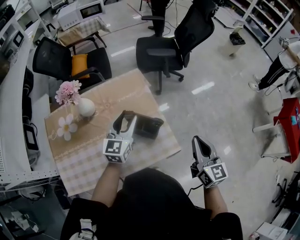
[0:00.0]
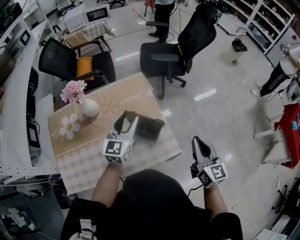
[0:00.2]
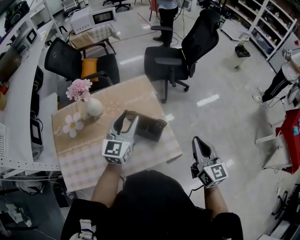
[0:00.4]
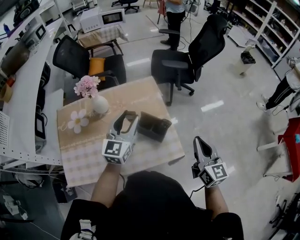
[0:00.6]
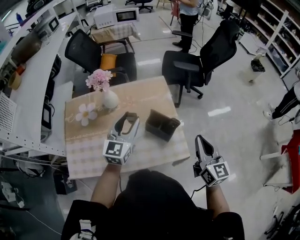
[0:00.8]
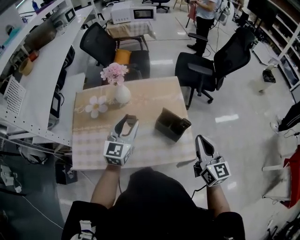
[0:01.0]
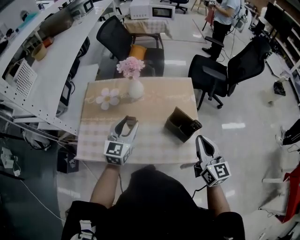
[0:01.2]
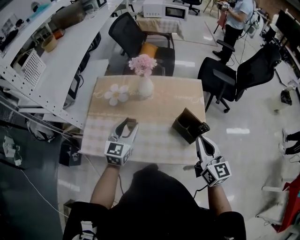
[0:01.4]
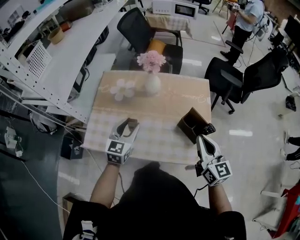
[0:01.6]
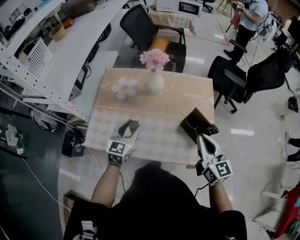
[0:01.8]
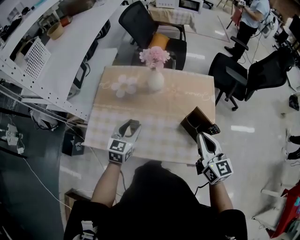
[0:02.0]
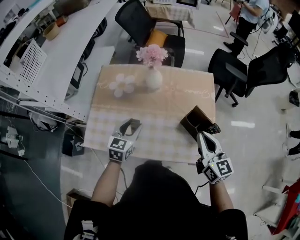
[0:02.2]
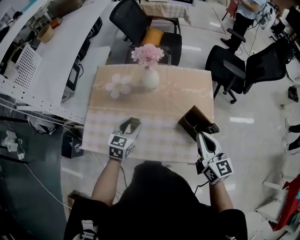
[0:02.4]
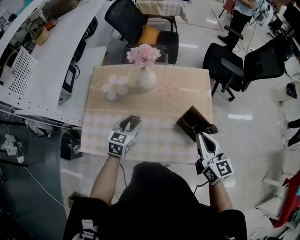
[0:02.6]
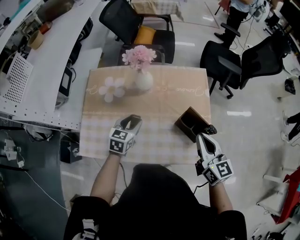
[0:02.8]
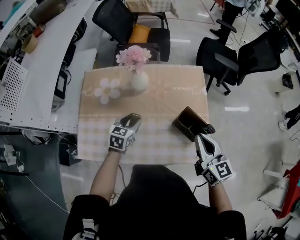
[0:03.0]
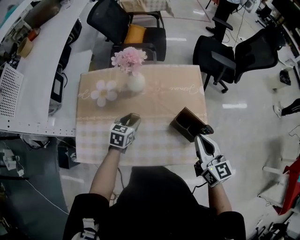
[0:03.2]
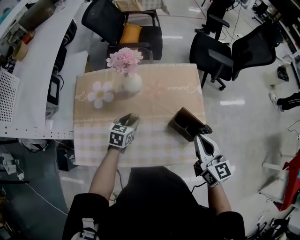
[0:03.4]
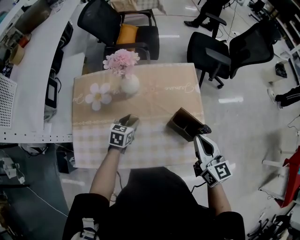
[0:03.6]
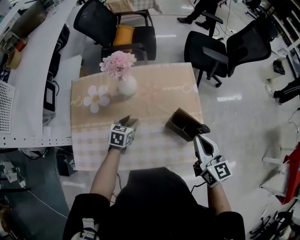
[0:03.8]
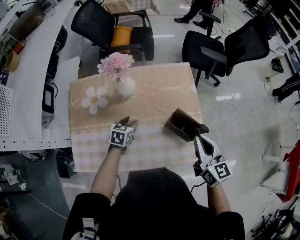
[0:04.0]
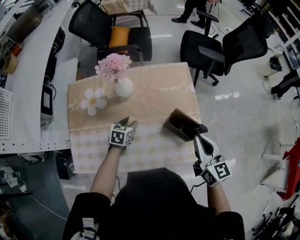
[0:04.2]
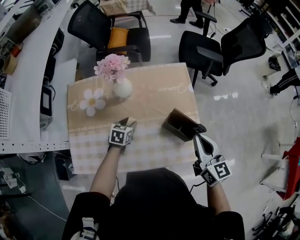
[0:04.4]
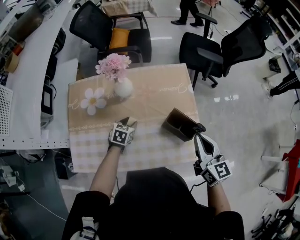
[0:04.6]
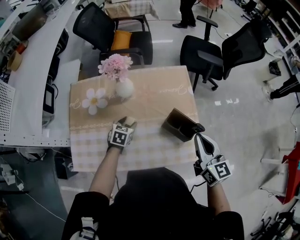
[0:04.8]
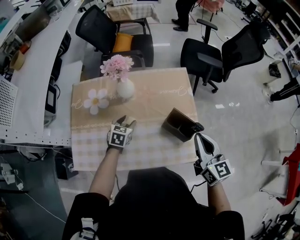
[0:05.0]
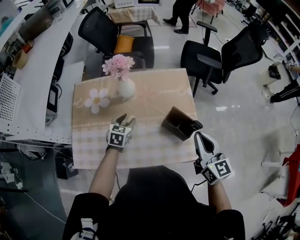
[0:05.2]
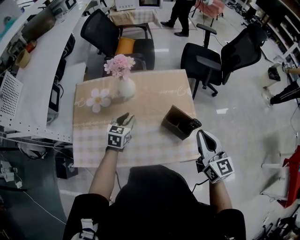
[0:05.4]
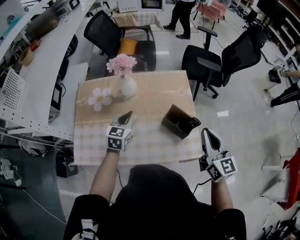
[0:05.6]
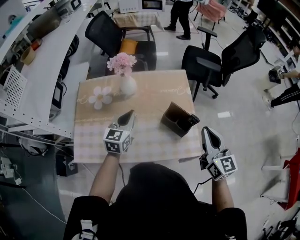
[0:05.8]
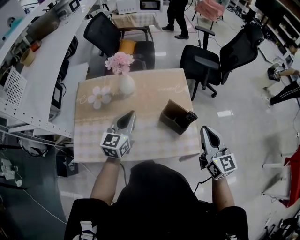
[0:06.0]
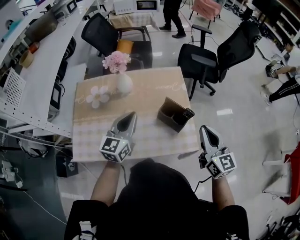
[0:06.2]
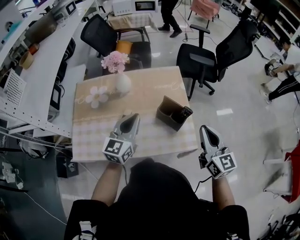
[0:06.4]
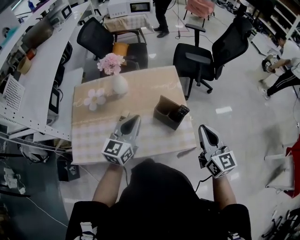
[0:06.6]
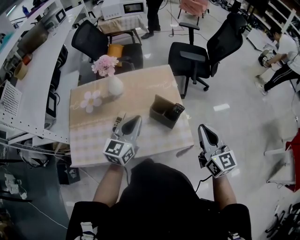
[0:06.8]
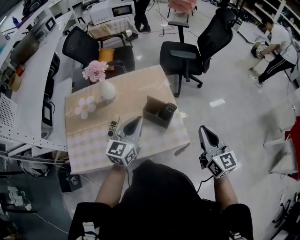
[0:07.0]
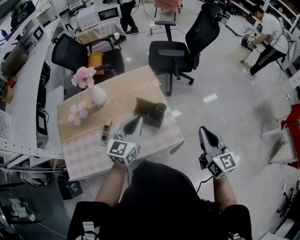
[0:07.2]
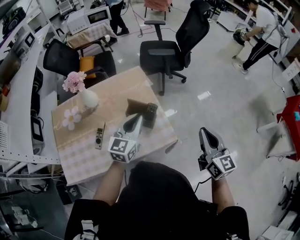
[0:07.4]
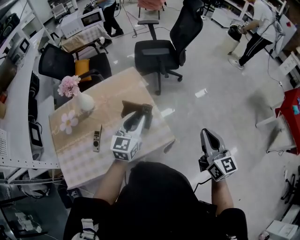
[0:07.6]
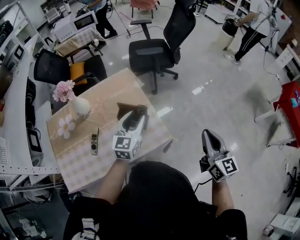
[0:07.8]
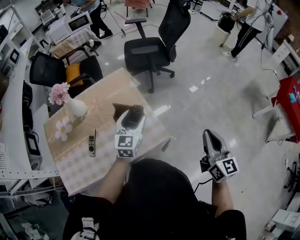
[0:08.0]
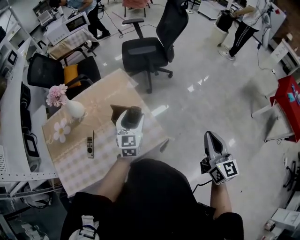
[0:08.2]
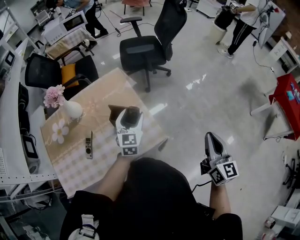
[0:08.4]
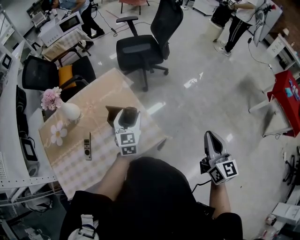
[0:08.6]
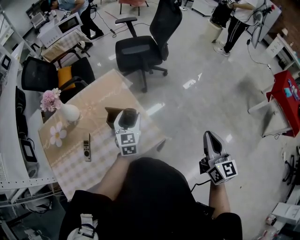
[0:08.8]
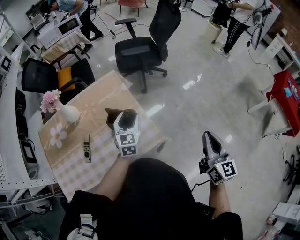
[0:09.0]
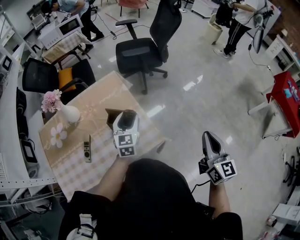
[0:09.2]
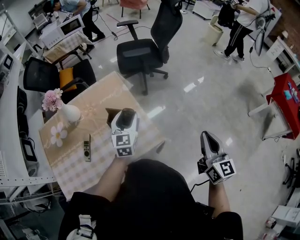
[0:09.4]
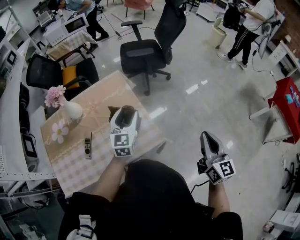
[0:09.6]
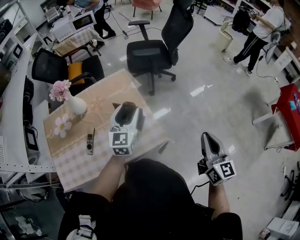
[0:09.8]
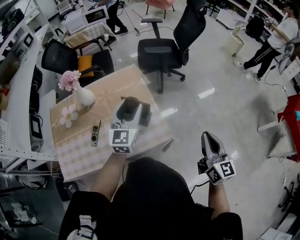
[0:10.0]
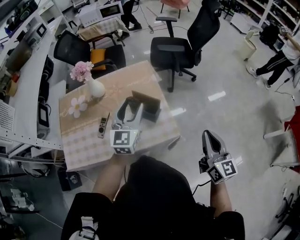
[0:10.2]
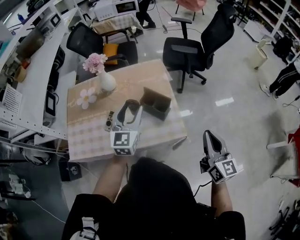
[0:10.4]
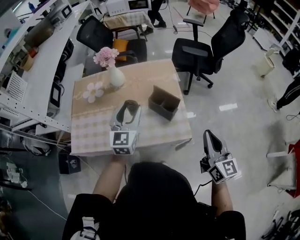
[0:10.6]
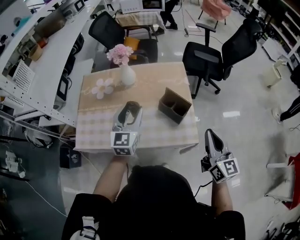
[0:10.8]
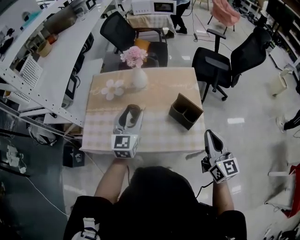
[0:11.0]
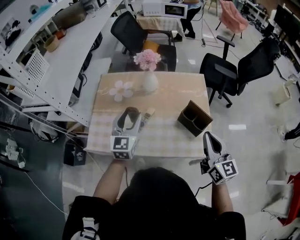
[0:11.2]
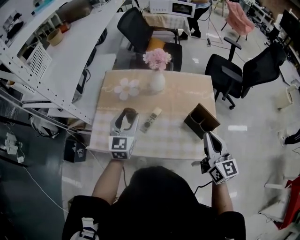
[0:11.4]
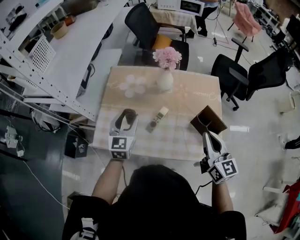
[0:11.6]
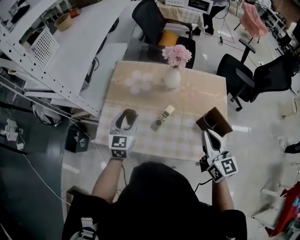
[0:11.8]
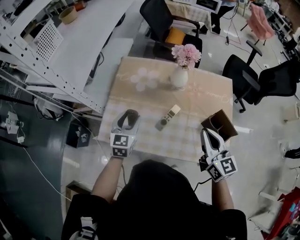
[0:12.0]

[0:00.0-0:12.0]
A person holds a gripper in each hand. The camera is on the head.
0:00.0 to 0:01.6: The left gripper moves about 5 cm upward and comes back, and swivels roughly 30 degrees; the right gripper shifts by some 20 cm, and turns by roughly 30 degrees.
0:01.6 to 0:03.0: The left gripper moves downward and forward, approximately 15 cm, and changes its angle by about 20 degrees. Meanwhile the right gripper moves about 5 cm.
0:03.0 to 0:04.4: The left gripper is displaced downward by about 10 cm.
0:04.4 to 0:06.0: The right gripper heads backward, upward and to the right, covering some 10 cm. Meanwhile the left gripper travels upward by some 25 cm, tilts its fingers roughly 40 degrees upward, and closes up.
0:06.0 to 0:07.6: The right gripper shifts approximately 20 cm to the right and backward, and turns by approximately 20 degrees; the left gripper shifts approximately 25 cm to the right, and rotates roughly 20 degrees.
0:07.6 to 0:09.0: The left gripper travels downward and forward by approximately 10 cm, and opens up. Meanwhile the right gripper is displaced to the right by approximately 5 cm.
0:09.0 to 0:10.4: The left gripper is displaced upward, to the left and backward by roughly 20 cm. The right gripper shifts about 10 cm to the left, and changes its angle by about 20 degrees.
0:10.4 to 0:12.0: The right gripper goes approximately 40 cm to the left and forward, and turns by approximately 30 degrees. The left gripper goes roughly 40 cm to the left, and changes its angle by roughly 30 degrees.

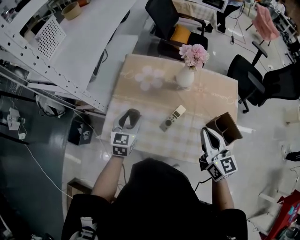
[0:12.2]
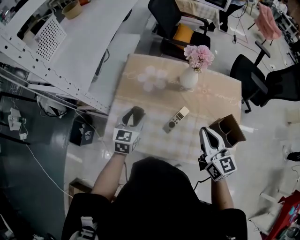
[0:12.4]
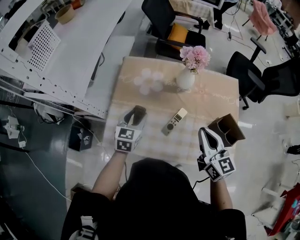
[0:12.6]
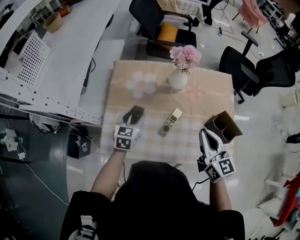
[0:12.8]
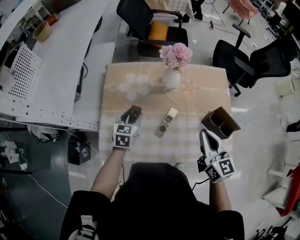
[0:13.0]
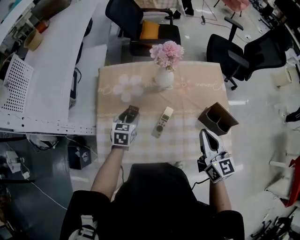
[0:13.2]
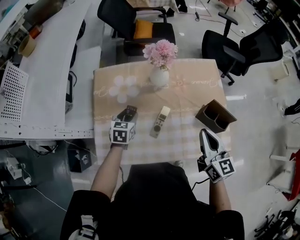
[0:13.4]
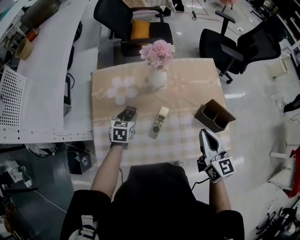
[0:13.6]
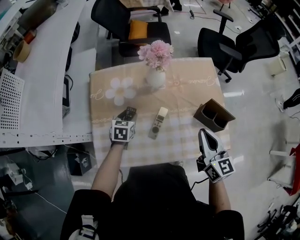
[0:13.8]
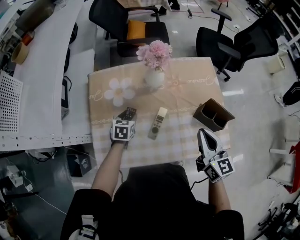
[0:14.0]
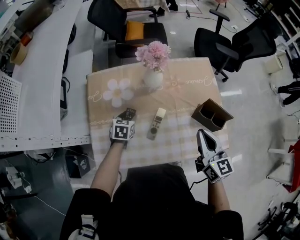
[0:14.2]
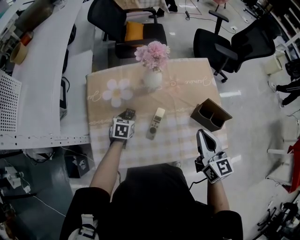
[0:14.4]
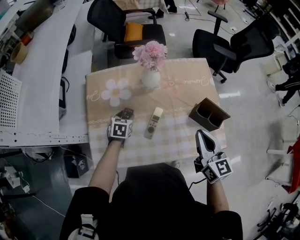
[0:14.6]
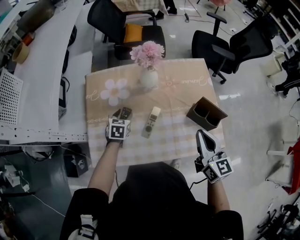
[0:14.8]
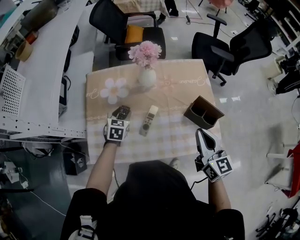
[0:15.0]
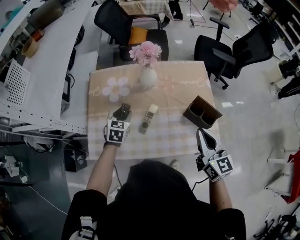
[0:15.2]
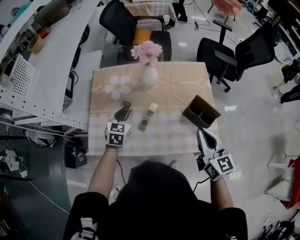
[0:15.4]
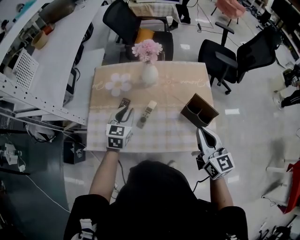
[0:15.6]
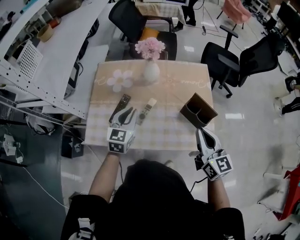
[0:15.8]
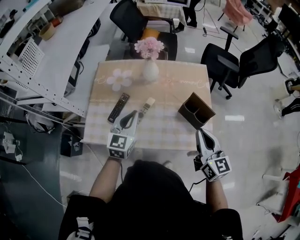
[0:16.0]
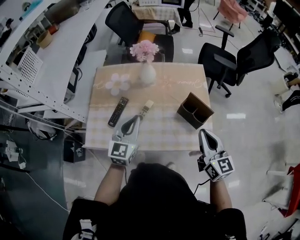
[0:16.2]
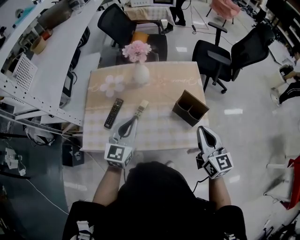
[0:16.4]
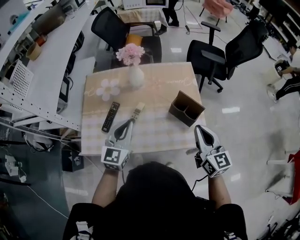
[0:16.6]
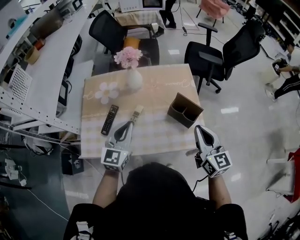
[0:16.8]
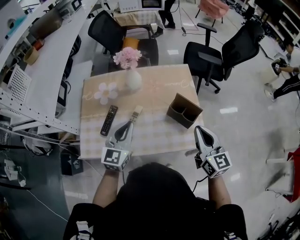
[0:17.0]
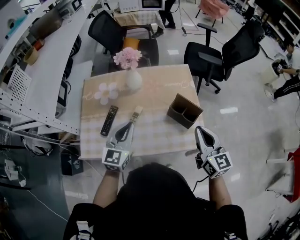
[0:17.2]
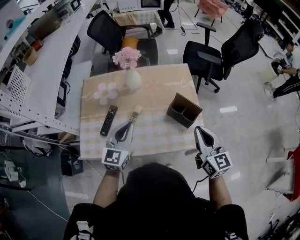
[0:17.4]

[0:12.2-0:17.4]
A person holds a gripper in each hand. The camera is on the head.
0:12.2 to 0:14.0: The right gripper ends up approximately 5 cm from where it was, and rotates approximately 20 degrees. Meanwhile the left gripper shifts some 20 cm downward, forward and to the right, and swivels roughly 30 degrees.
0:14.0 to 0:15.6: The left gripper shifts approximately 20 cm upward, backward and to the right, swivels roughly 20 degrees, and closes up. The right gripper goes some 10 cm to the right and backward.
0:15.6 to 0:17.4: The right gripper heads to the right, covering about 5 cm; the left gripper goes approximately 15 cm to the right, backward and upward.

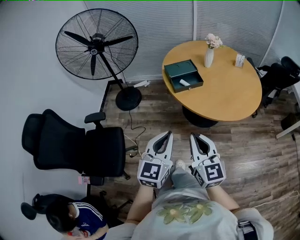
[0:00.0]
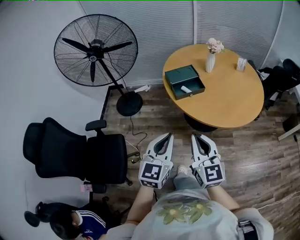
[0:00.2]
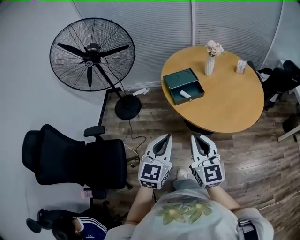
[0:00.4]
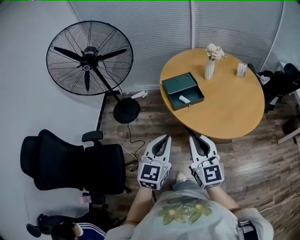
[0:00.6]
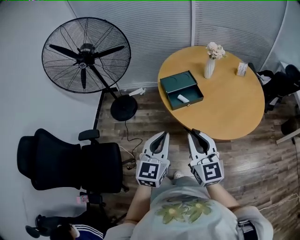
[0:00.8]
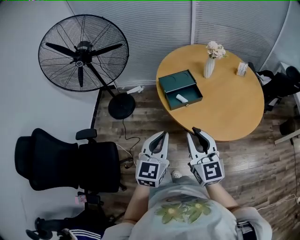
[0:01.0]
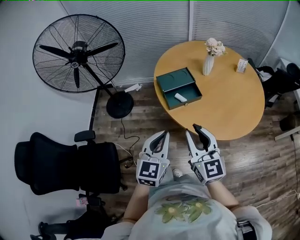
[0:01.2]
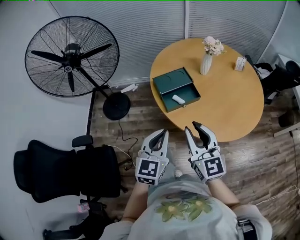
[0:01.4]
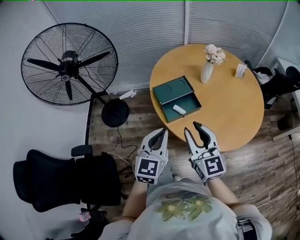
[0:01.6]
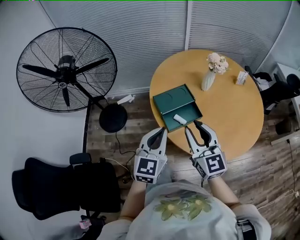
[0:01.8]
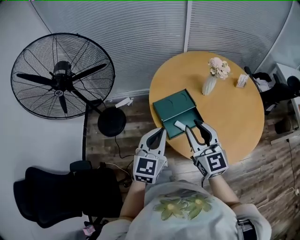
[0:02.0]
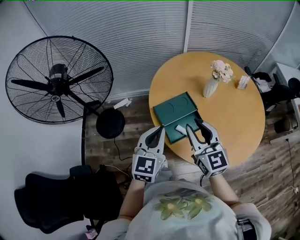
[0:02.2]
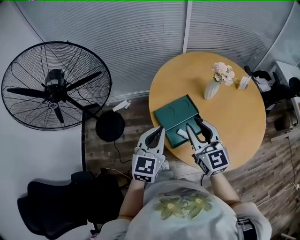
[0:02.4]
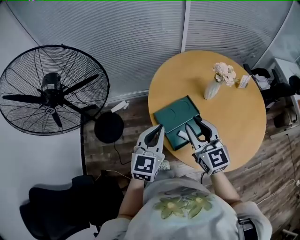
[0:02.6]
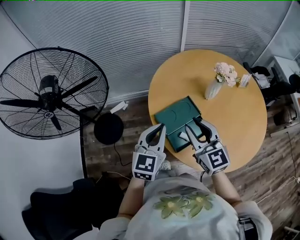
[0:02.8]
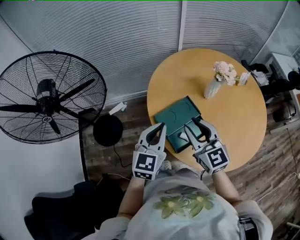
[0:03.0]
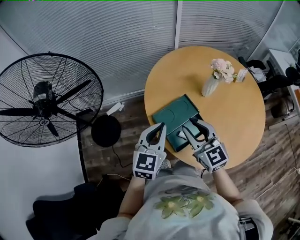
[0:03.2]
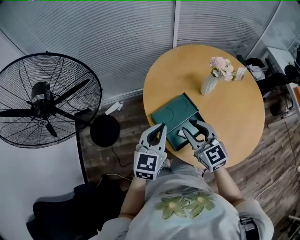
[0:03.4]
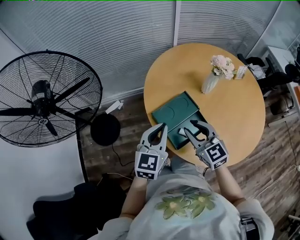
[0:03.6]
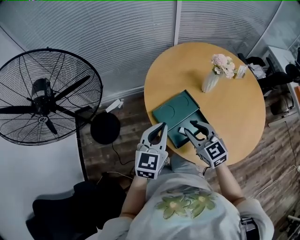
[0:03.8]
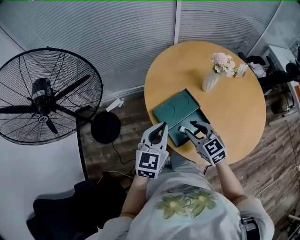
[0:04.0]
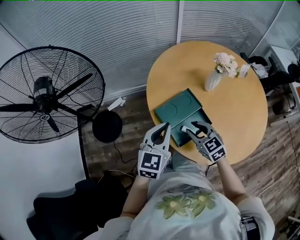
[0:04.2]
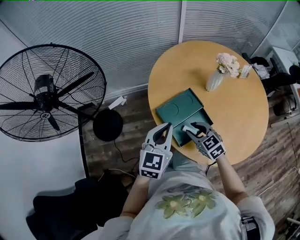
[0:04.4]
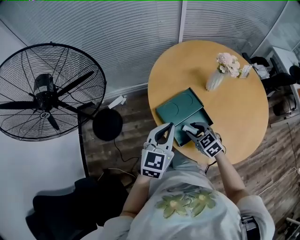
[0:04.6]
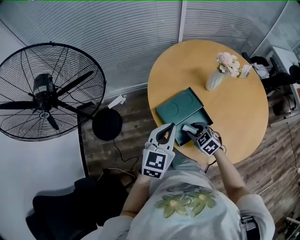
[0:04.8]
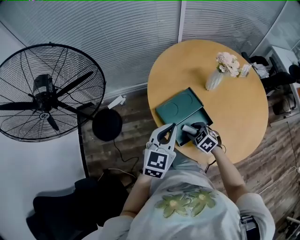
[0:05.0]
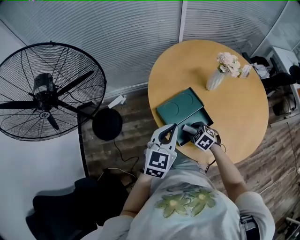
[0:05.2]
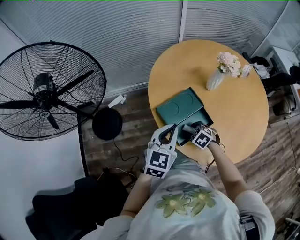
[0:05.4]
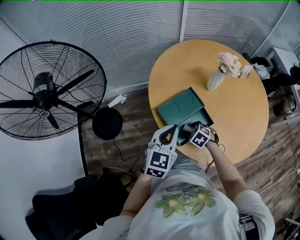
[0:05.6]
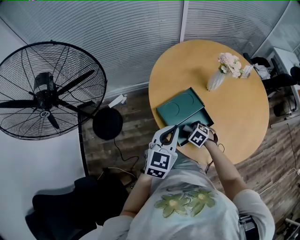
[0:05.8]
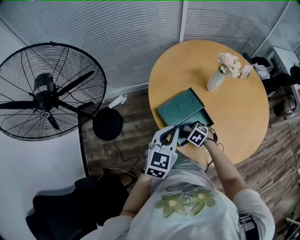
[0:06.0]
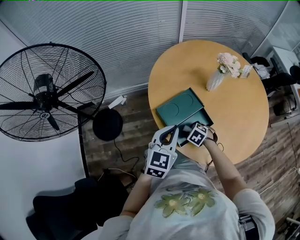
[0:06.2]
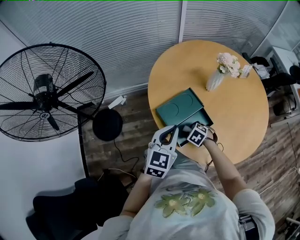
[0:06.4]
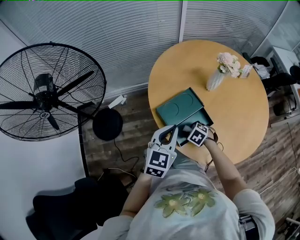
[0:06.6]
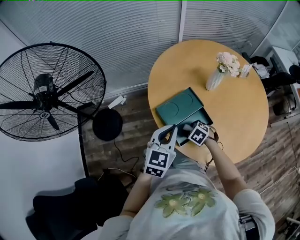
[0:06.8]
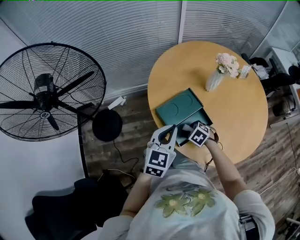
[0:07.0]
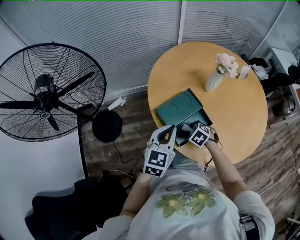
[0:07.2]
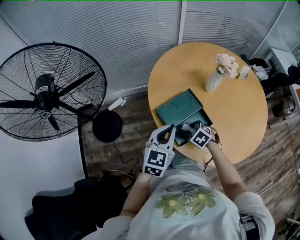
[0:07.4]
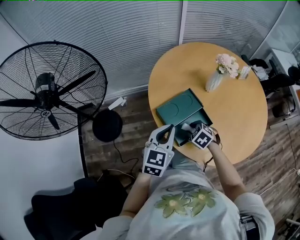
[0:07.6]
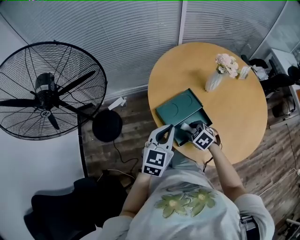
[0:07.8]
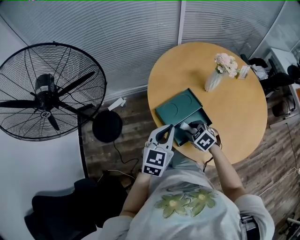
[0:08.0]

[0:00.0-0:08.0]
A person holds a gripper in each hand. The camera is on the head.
0:00.0 to 0:01.6: The grippers both shift forward by some 30 cm. The right gripper opens.
0:01.6 to 0:03.2: Both grippers move forward, about 25 cm.
0:03.2 to 0:04.8: The right gripper shifts roughly 20 cm downward, and angles its fingers downward, by roughly 40 degrees.
0:04.8 to 0:06.4: The right gripper moves downward, some 10 cm, and turns by some 20 degrees.
0:06.4 to 0:08.0: The right gripper goes about 10 cm upward.
